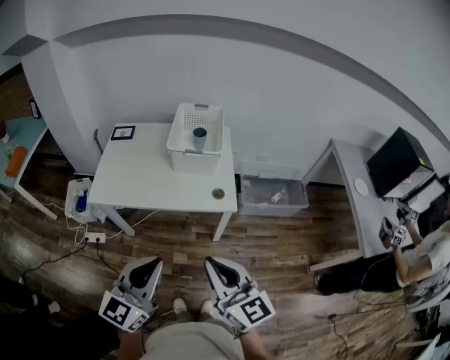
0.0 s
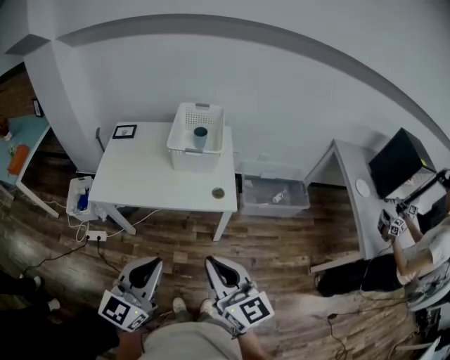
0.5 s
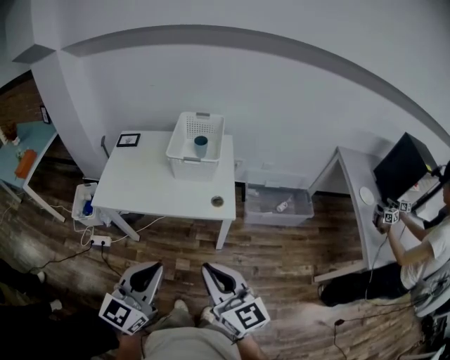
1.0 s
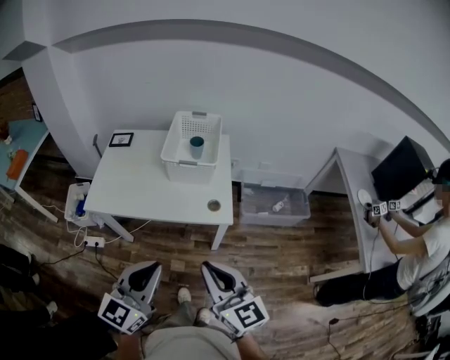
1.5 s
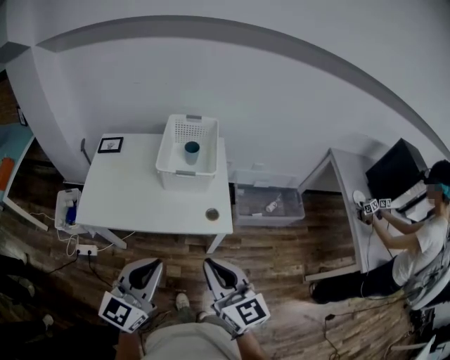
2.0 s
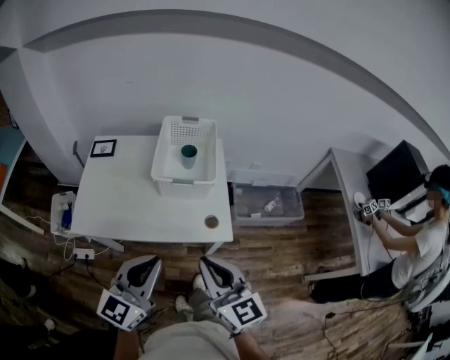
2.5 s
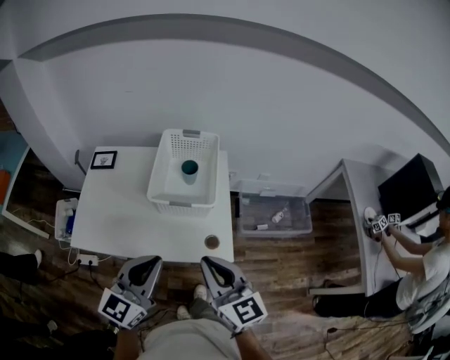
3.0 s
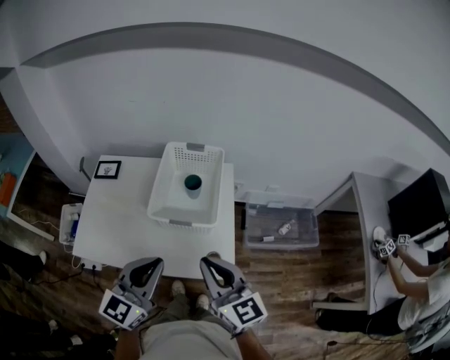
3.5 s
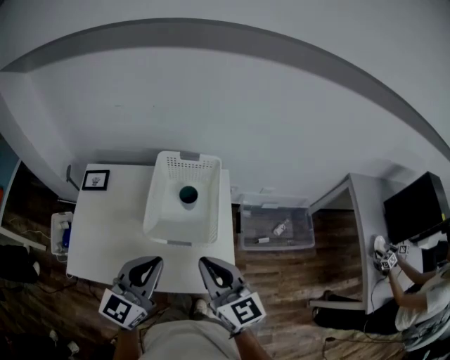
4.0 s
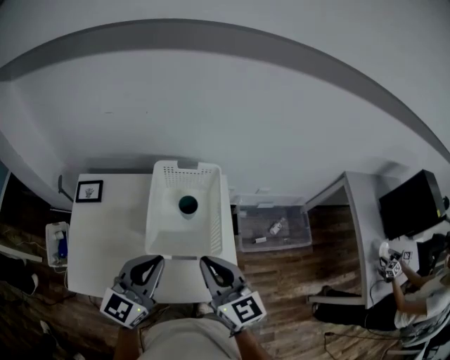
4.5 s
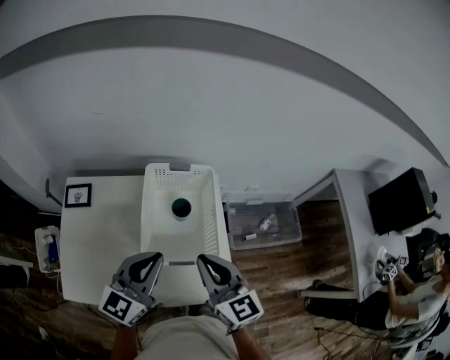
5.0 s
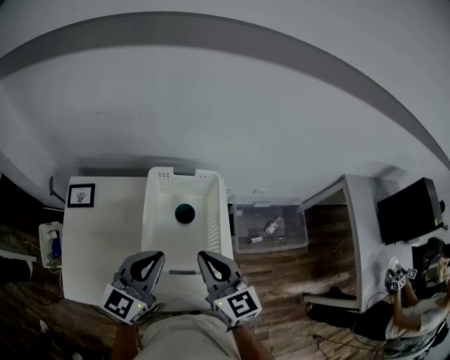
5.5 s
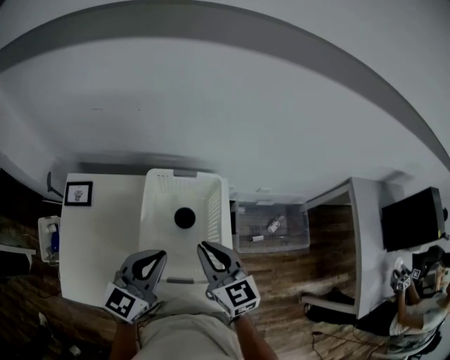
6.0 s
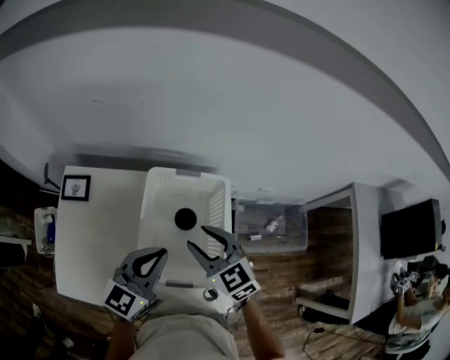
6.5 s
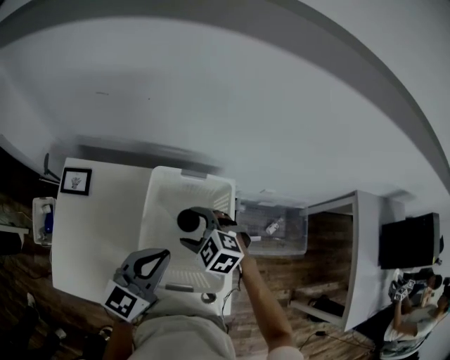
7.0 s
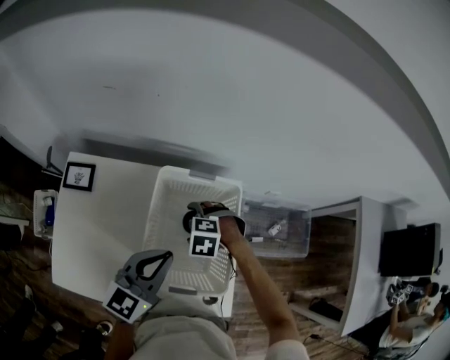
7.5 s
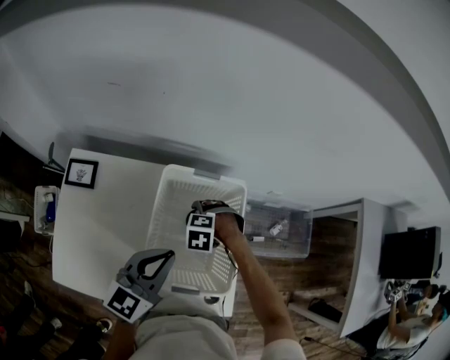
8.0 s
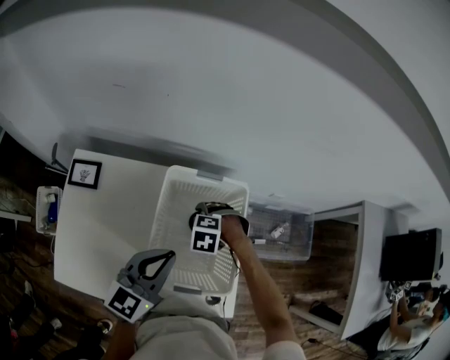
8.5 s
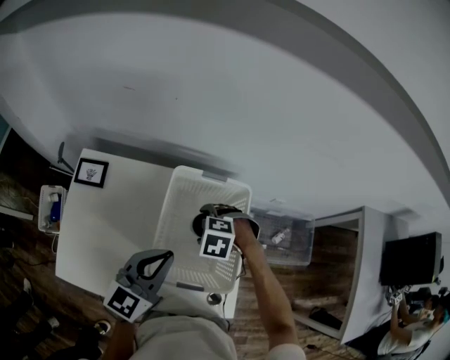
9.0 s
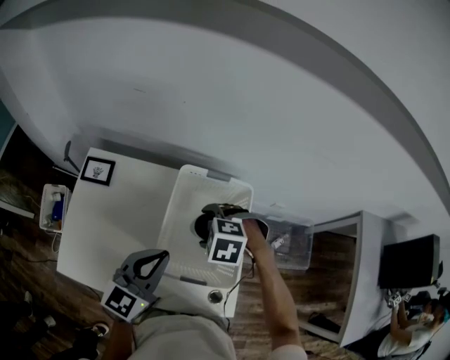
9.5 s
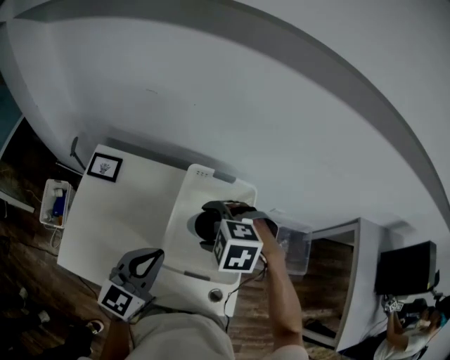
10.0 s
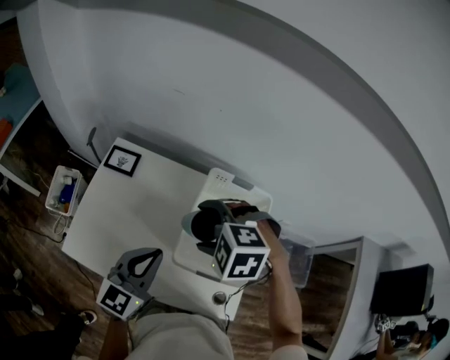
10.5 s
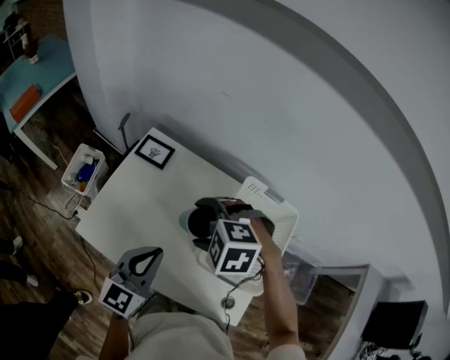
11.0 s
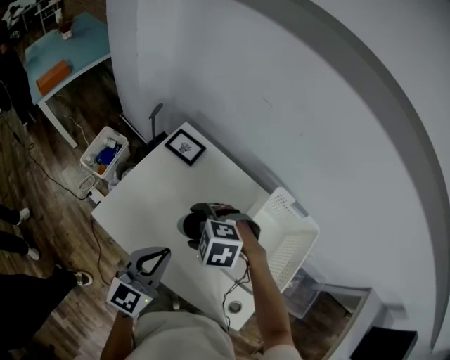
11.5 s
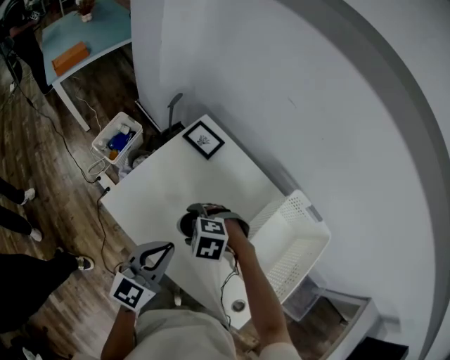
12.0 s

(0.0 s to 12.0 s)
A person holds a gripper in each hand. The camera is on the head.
0.0 s - 2.0 s: Both grippers move forward, about 10 cm.
2.0 s - 4.0 s: The grippers both shift forward by roughly 30 cm.
4.0 s - 6.0 s: The two grippers go roughly 15 cm forward.
6.0 s - 8.0 s: The right gripper goes about 20 cm downward, angles its fingers downward, by about 70 degrees, and opens its fingers.
8.0 s - 10.0 s: The right gripper travels upward by approximately 20 cm. The left gripper moves about 10 cm.
10.0 s - 12.0 s: The right gripper moves roughly 30 cm, and changes its angle by approximately 30 degrees, while the left gripper shifts by about 20 cm, and swivels some 30 degrees.

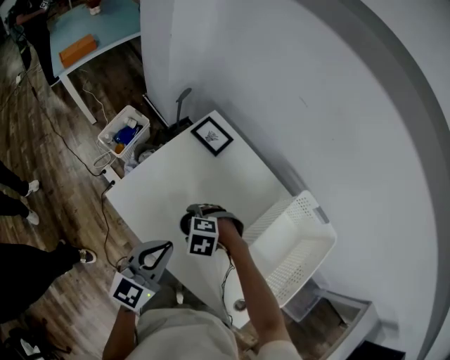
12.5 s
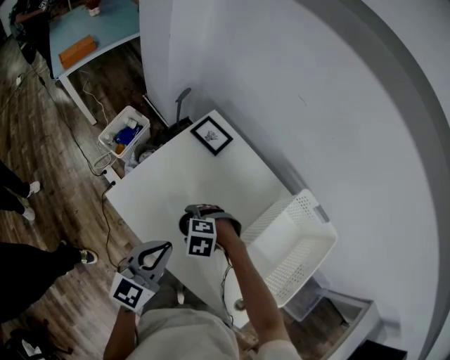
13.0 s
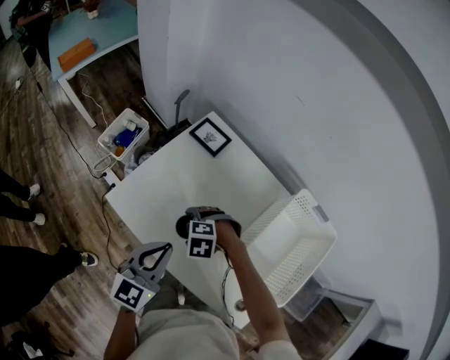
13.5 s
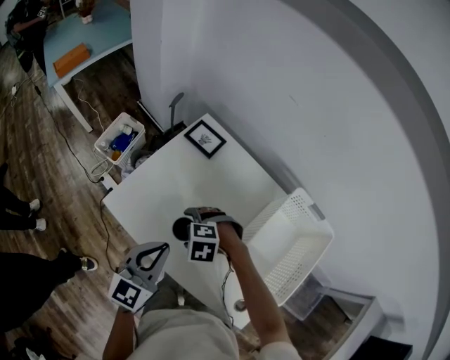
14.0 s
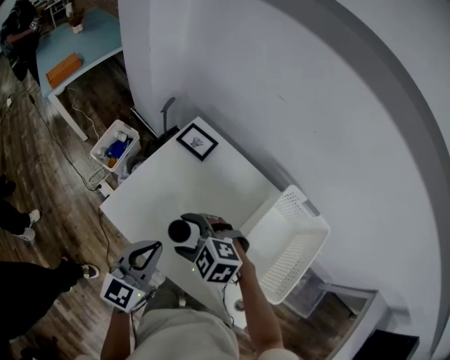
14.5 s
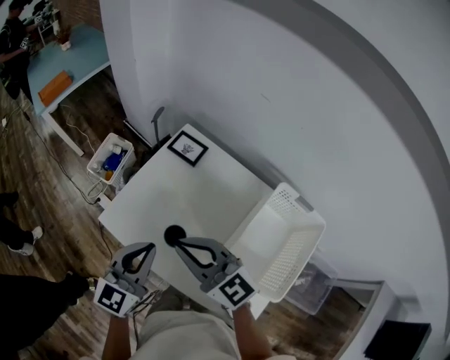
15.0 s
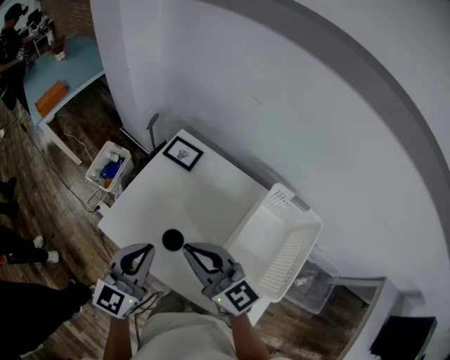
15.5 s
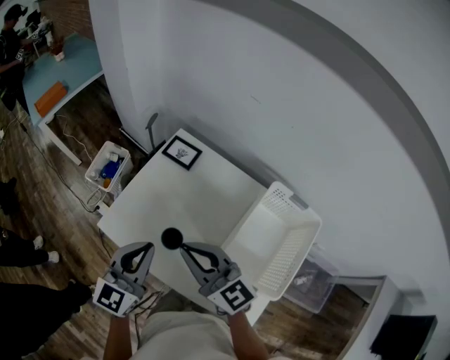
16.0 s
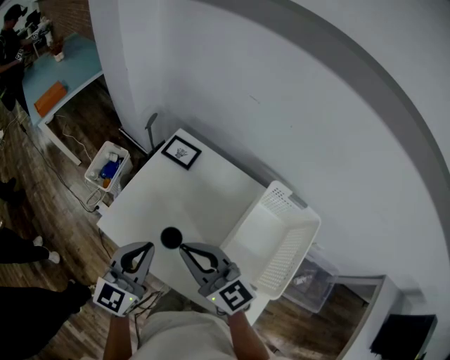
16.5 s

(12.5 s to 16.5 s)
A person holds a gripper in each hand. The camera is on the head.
12.5 s - 14.5 s: The right gripper is displaced upward by roughly 15 cm, and changes its angle by about 30 degrees.
14.5 s - 16.5 s: The right gripper goes roughly 15 cm upward, tilts its fingers roughly 50 degrees upward, and closes up.

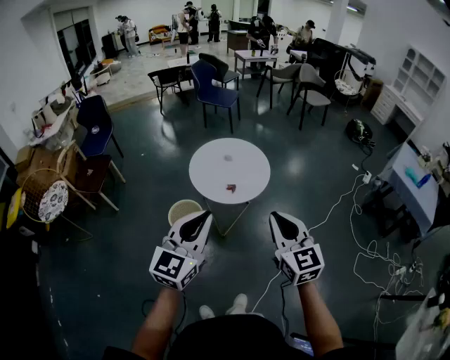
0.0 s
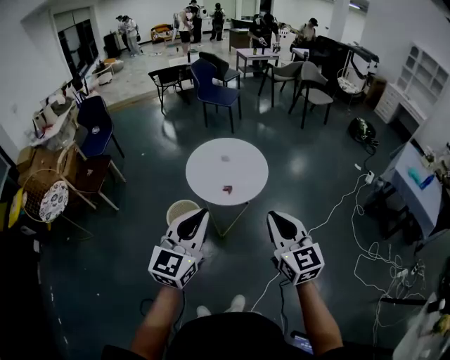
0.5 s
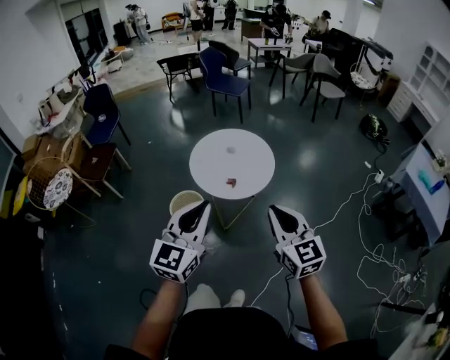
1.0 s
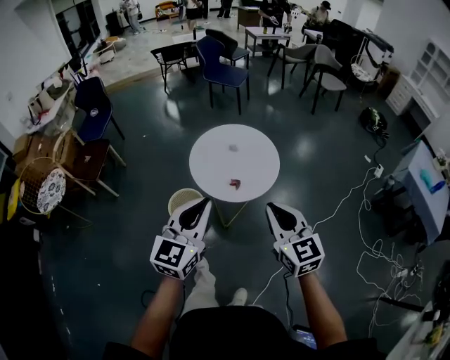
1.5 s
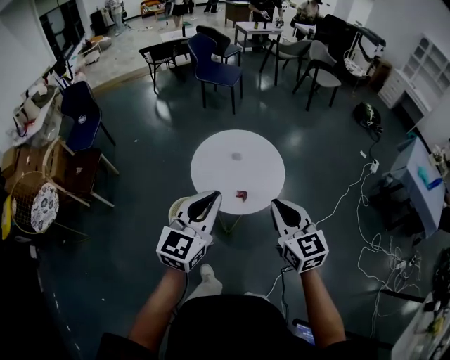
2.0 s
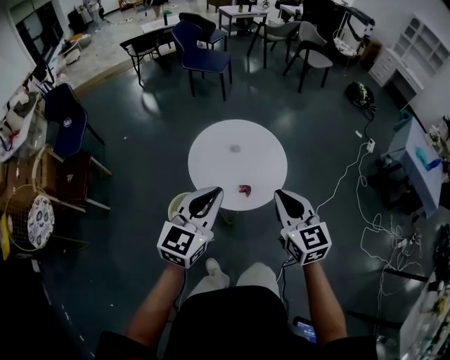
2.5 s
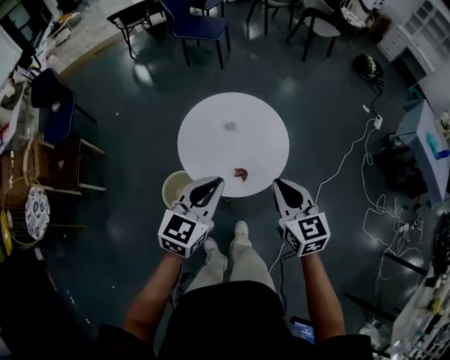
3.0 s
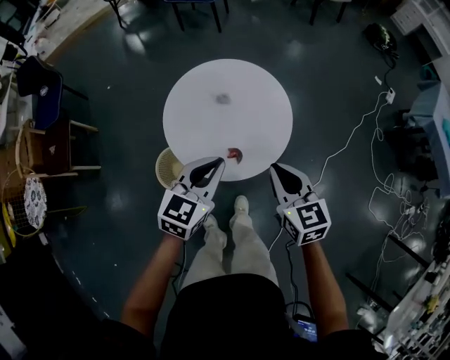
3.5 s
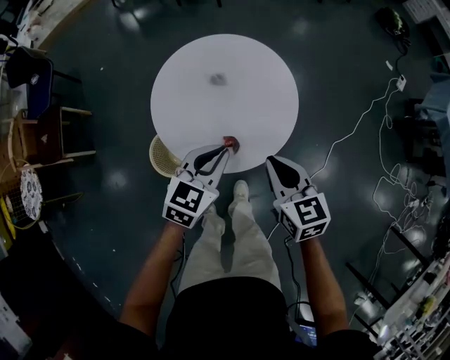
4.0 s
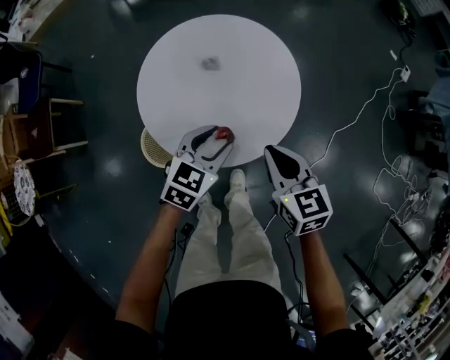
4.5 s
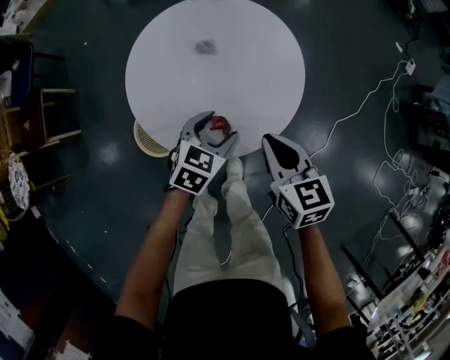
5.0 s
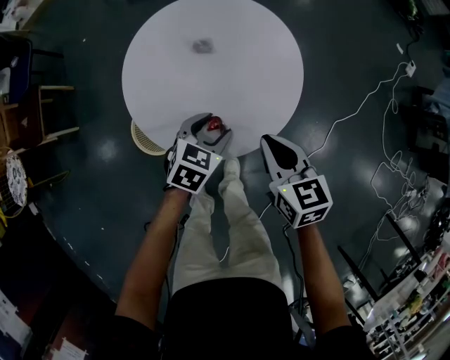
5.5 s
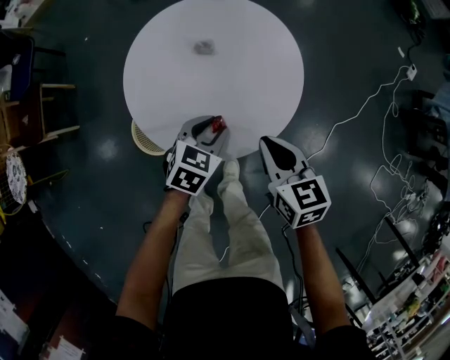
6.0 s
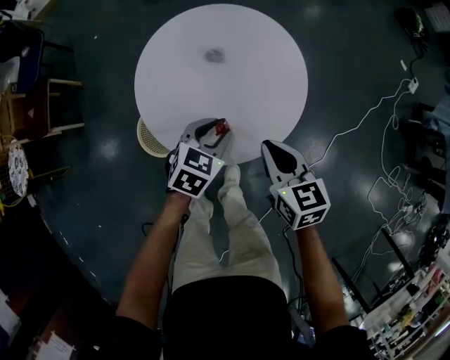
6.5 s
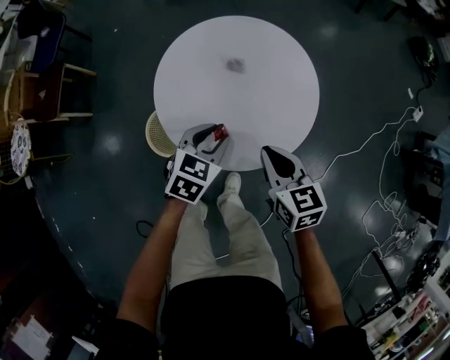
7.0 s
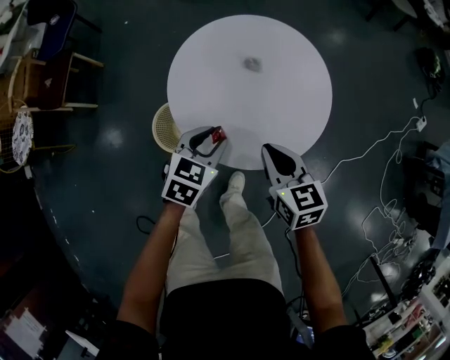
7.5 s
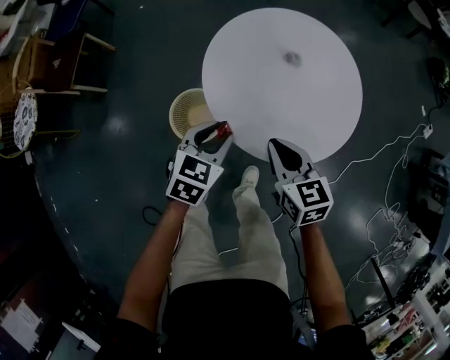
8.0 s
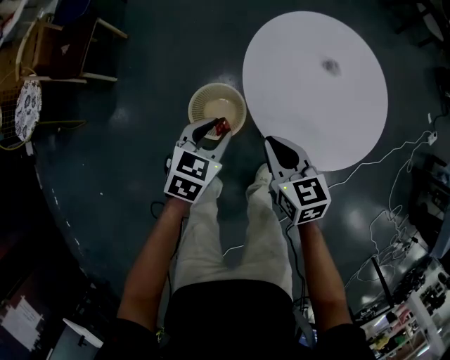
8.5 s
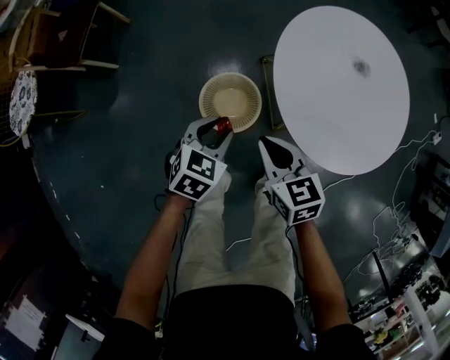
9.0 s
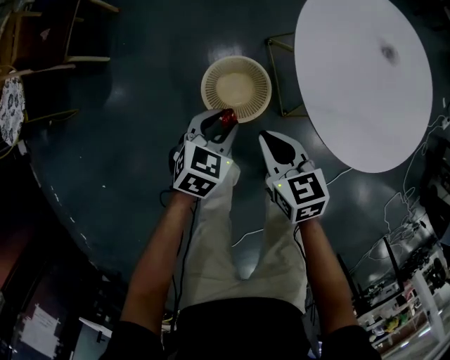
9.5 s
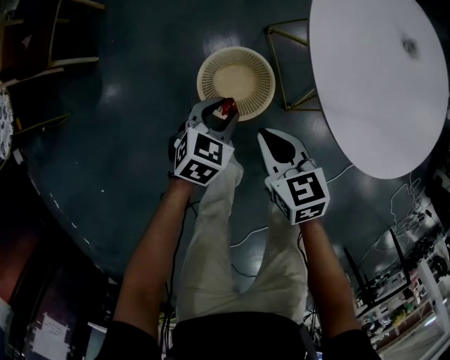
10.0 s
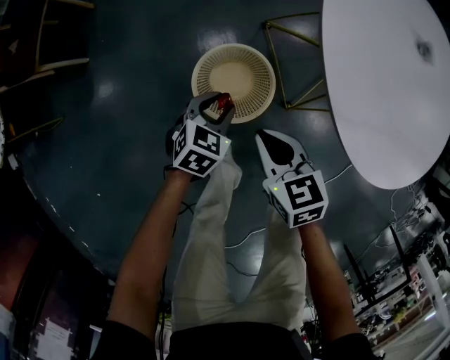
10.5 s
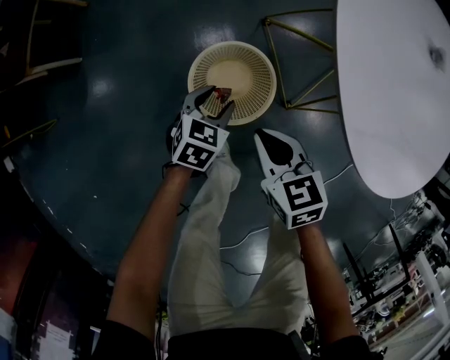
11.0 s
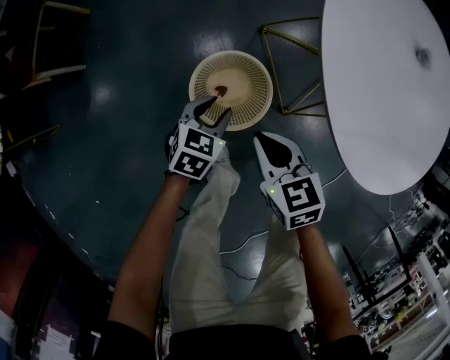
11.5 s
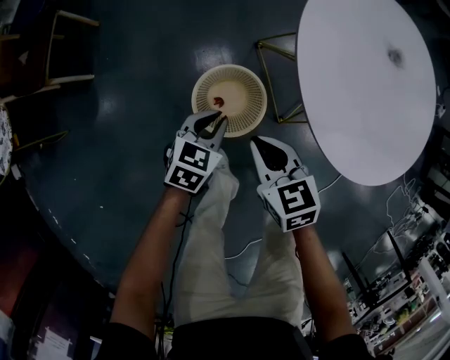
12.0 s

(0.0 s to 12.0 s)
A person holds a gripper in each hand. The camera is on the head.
0.0 s - 2.0 s: Both grippers travel together forward, about 25 cm.
2.0 s - 4.0 s: Both grippers move downward and forward, roughly 40 cm. The left gripper swivels about 30 degrees. Meanwhile the right gripper swivels about 20 degrees.
4.0 s - 6.0 s: The left gripper heads downward, covering about 15 cm, and opens up; the right gripper moves downward, approximately 10 cm.
6.0 s - 8.0 s: Both grippers travel together to the left, about 20 cm.
8.0 s - 10.0 s: The left gripper shifts approximately 35 cm downward and to the left. The right gripper moves to the left and downward, about 40 cm.
10.0 s - 12.0 s: The right gripper reaches roughly 5 cm downward, then returns. Meanwhile the left gripper travels downward and back again, about 10 cm each way.
